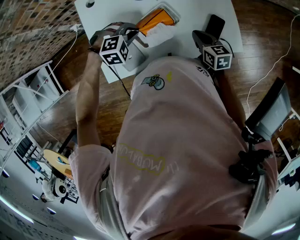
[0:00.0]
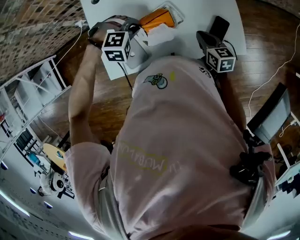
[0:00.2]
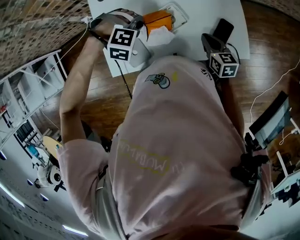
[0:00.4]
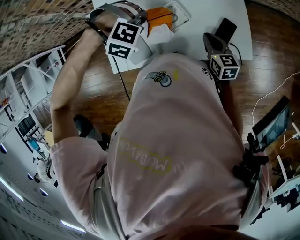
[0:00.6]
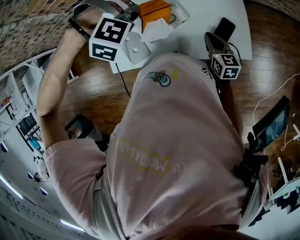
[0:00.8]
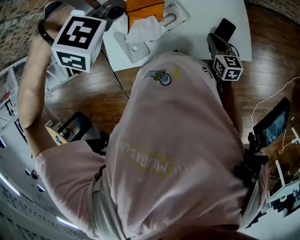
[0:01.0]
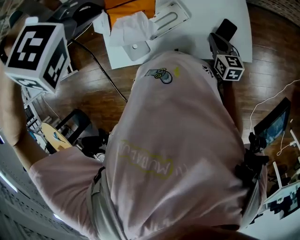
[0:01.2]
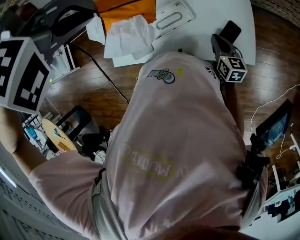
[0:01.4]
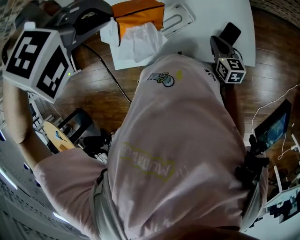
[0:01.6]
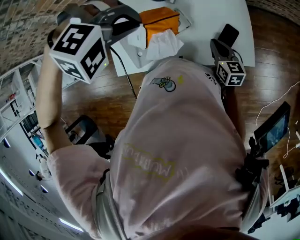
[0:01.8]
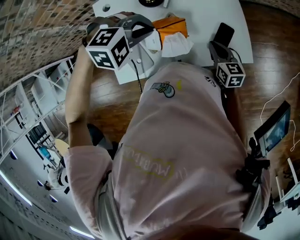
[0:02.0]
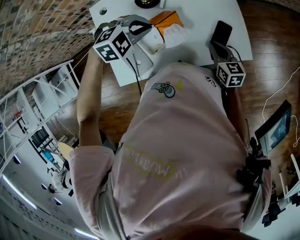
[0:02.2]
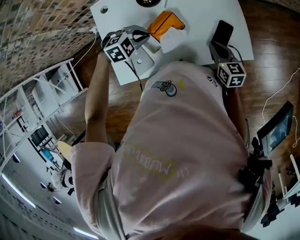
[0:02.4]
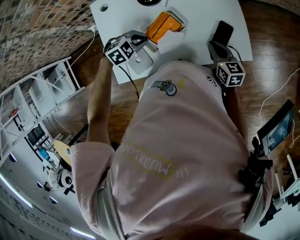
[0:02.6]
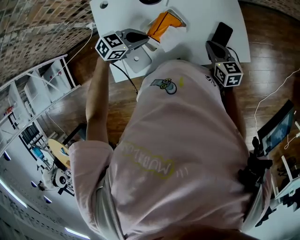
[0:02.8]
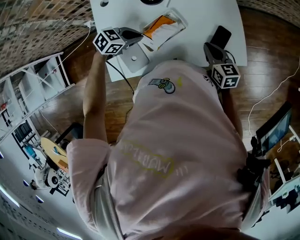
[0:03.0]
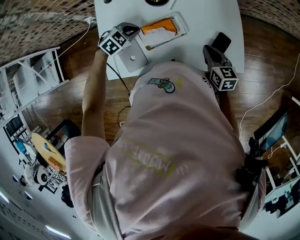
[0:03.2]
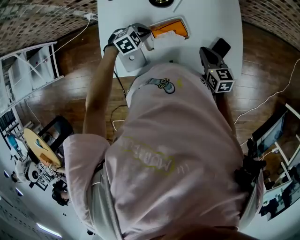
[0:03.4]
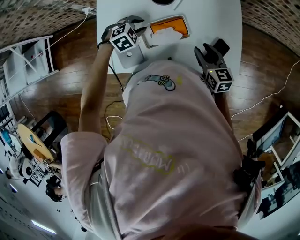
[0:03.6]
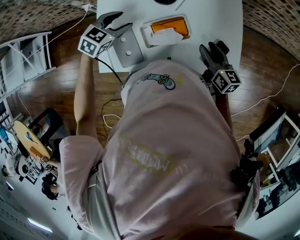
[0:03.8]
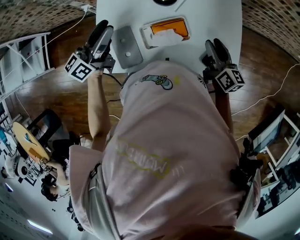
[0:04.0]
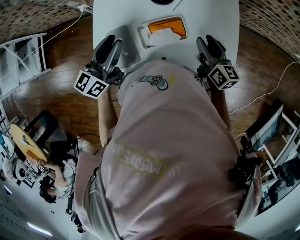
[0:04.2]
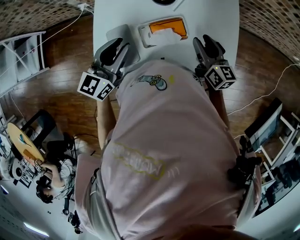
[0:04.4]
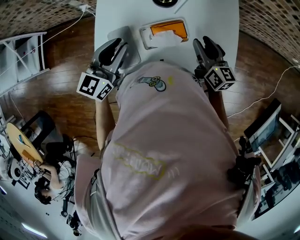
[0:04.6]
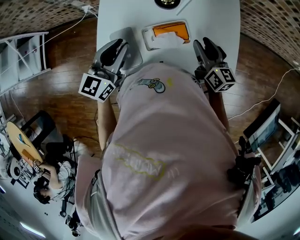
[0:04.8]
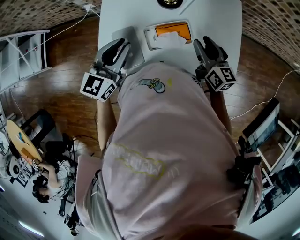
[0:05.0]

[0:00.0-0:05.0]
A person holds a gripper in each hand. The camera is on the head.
0:00.0 to 0:01.6: The left gripper moves upward, some 30 cm, and turns by some 30 degrees.
0:01.6 to 0:03.4: The left gripper moves up and down over roughly 35 cm, changing direction 2 times, and rotates around the line of its fingers by some 60 degrees, counterclockwise from behind.
0:03.4 to 0:05.0: The right gripper travels upward by approximately 10 cm, and opens up; the left gripper heads upward, covering some 25 cm, tips its fingers upward by roughly 50 degrees, and opens, then closes once more.

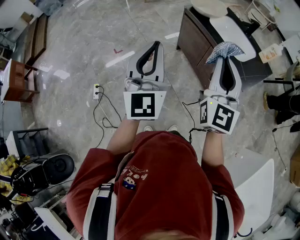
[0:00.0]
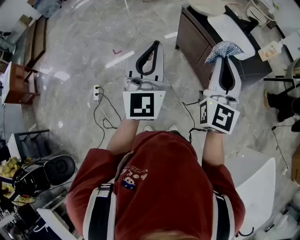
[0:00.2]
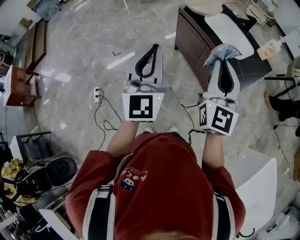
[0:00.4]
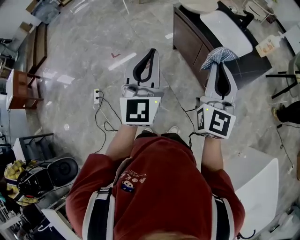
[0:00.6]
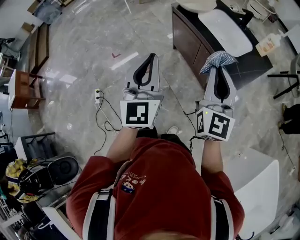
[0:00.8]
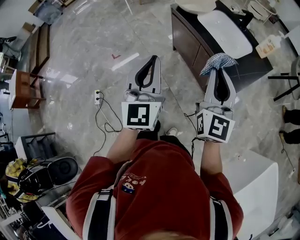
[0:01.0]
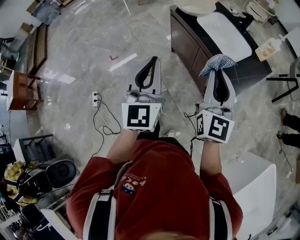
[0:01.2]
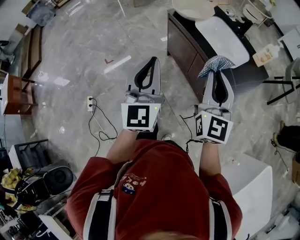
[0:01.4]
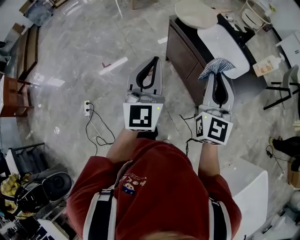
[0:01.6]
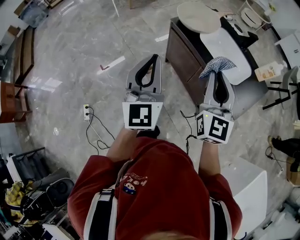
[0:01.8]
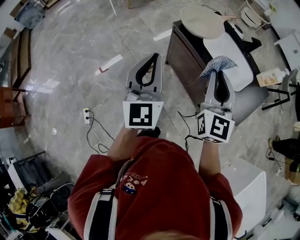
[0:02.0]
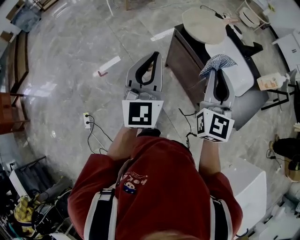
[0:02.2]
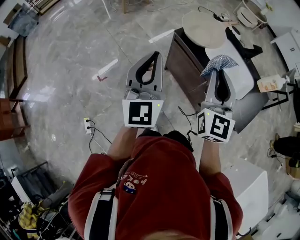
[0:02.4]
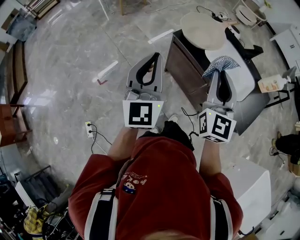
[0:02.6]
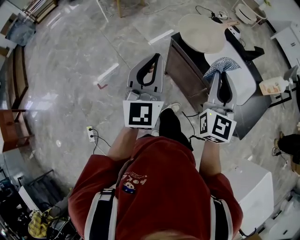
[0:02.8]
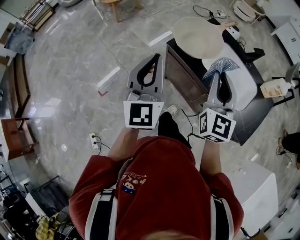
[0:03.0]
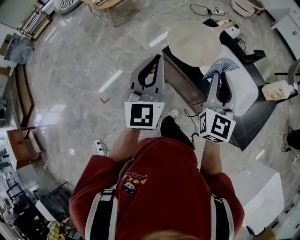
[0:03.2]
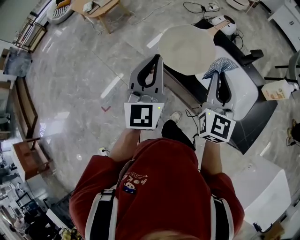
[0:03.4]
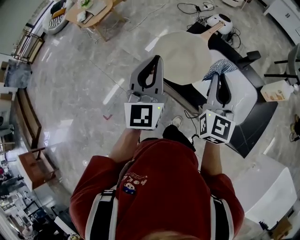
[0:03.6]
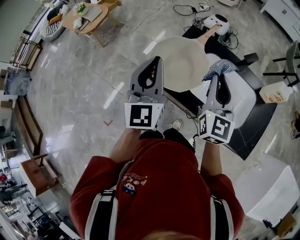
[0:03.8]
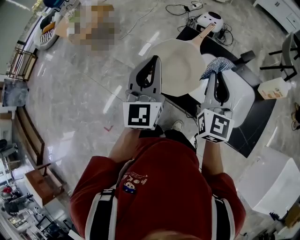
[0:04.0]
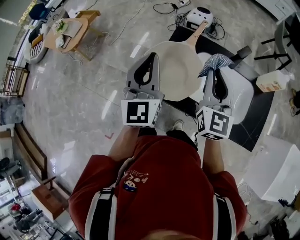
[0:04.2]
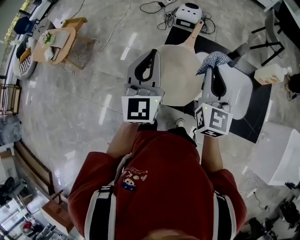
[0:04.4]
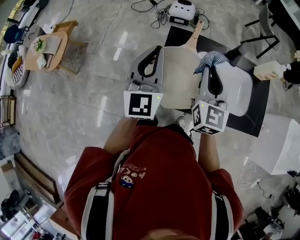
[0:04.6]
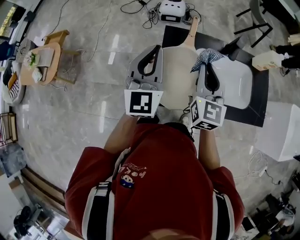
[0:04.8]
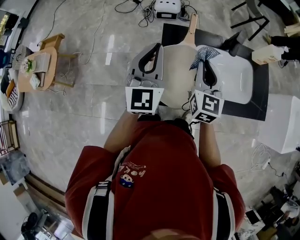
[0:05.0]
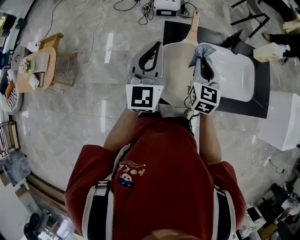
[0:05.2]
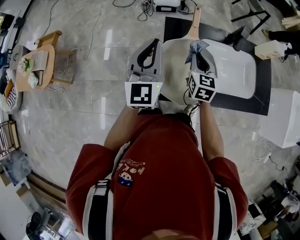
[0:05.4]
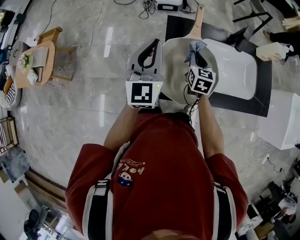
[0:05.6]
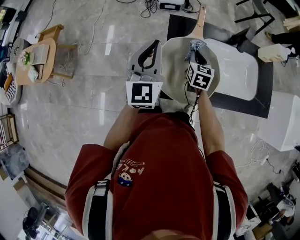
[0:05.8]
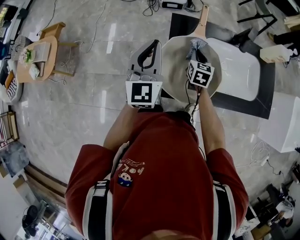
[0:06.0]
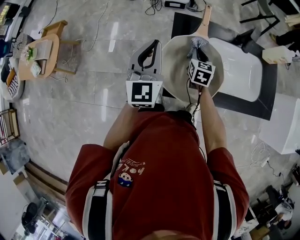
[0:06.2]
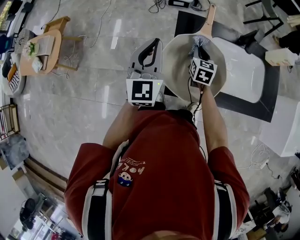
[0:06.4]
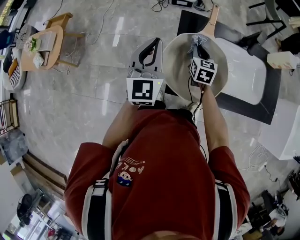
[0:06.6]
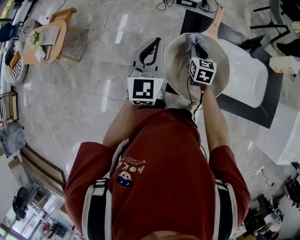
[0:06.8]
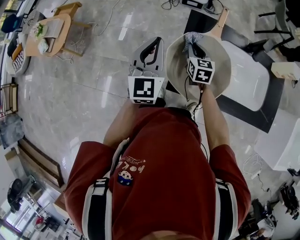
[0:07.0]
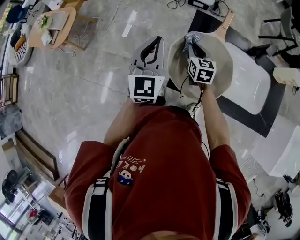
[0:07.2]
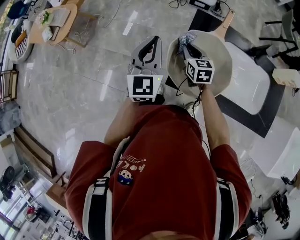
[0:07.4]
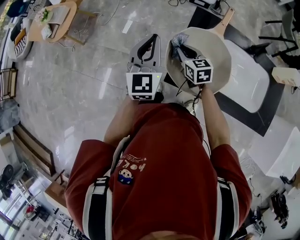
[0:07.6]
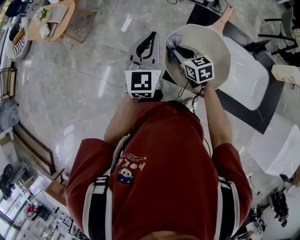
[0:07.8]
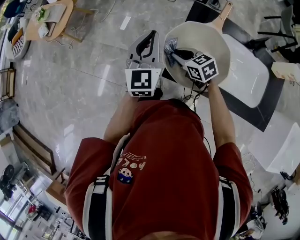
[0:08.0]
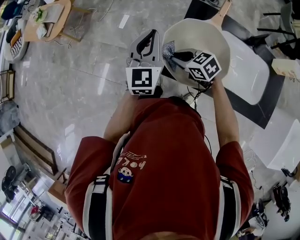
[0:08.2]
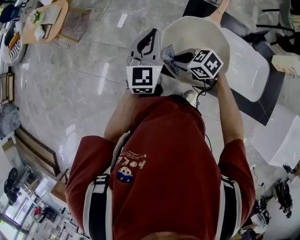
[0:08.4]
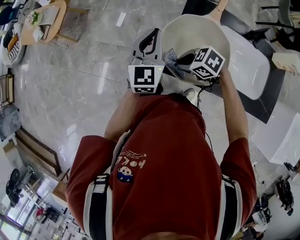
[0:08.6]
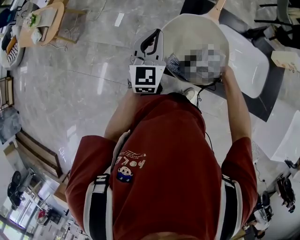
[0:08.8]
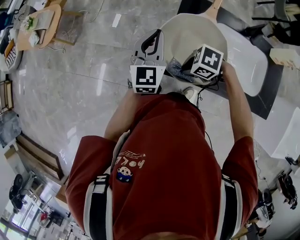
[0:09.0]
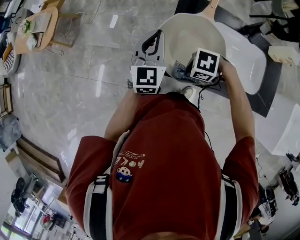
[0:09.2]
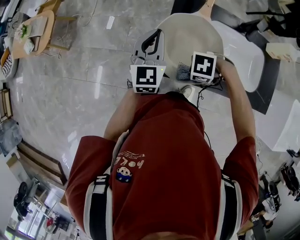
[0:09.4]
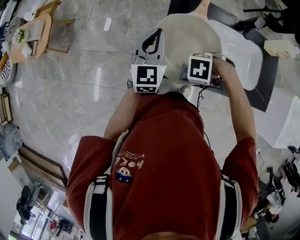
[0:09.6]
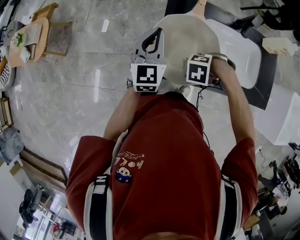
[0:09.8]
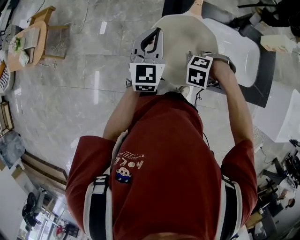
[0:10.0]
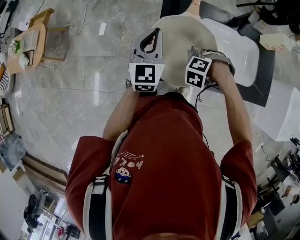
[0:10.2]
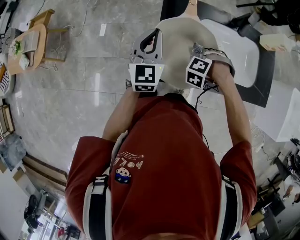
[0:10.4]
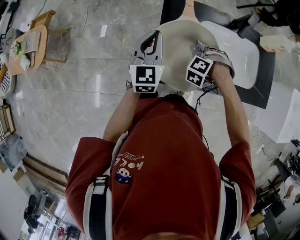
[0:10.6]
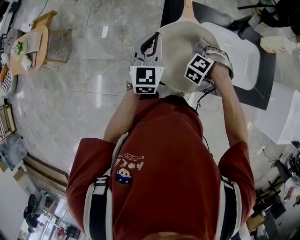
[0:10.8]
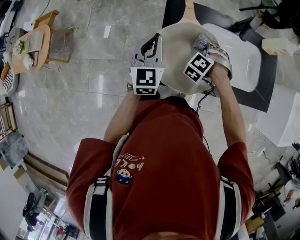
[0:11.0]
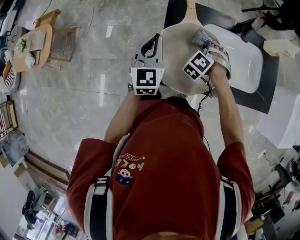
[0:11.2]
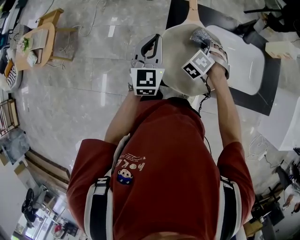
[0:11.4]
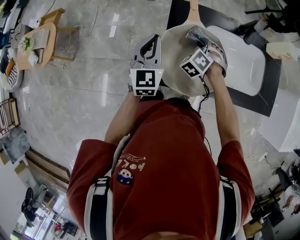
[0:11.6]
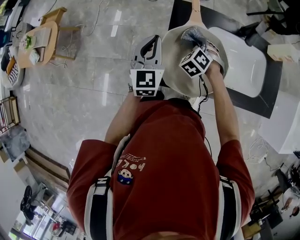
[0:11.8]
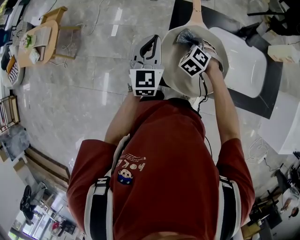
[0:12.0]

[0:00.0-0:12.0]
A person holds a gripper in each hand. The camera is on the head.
0:00.0 to 0:01.6: The right gripper goes approximately 15 cm forward, to the right and downward, while the left gripper heads forward and to the right, covering roughly 15 cm.
0:01.6 to 0:03.0: Both grippers travel together forward, roughly 25 cm.
0:03.0 to 0:04.4: The right gripper changes place by approximately 25 cm, and swivels about 30 degrees. The left gripper moves roughly 35 cm, and rotates roughly 30 degrees.
0:04.4 to 0:06.0: The left gripper goes approximately 15 cm downward, to the left and forward. Meanwhile the right gripper travels downward by approximately 25 cm, and tilts its fingers approximately 30 degrees downward.
0:06.0 to 0:07.6: The left gripper ends up about 5 cm from where it was. Meanwhile the right gripper moves about 15 cm, and rotates roughly 40 degrees.
0:07.6 to 0:09.0: The left gripper changes place by approximately 5 cm; the right gripper ends up approximately 15 cm from where it was, and rotates about 70 degrees.
0:09.0 to 0:10.4: The right gripper shifts by roughly 15 cm, and changes its angle by about 60 degrees; the left gripper changes place by about 5 cm.
0:10.4 to 0:12.0: The right gripper shifts by some 15 cm, and turns by approximately 40 degrees.

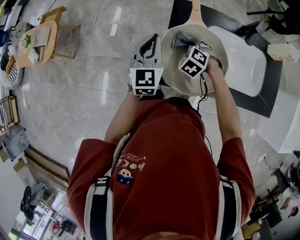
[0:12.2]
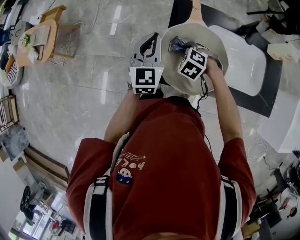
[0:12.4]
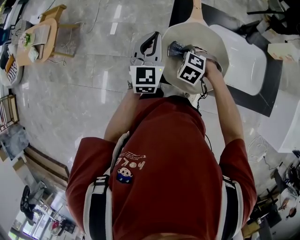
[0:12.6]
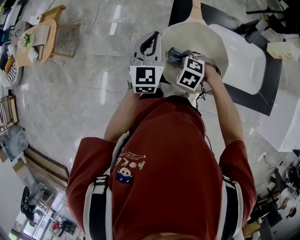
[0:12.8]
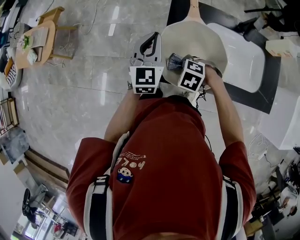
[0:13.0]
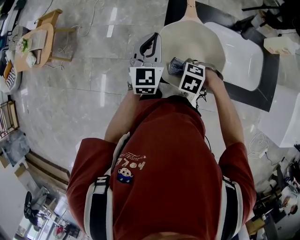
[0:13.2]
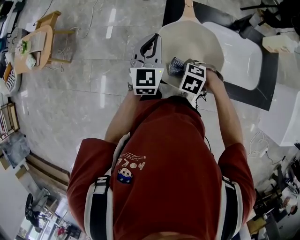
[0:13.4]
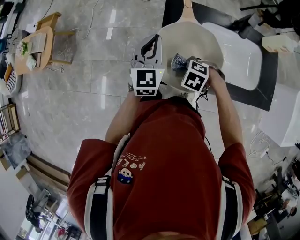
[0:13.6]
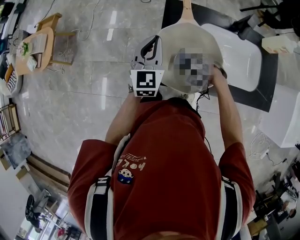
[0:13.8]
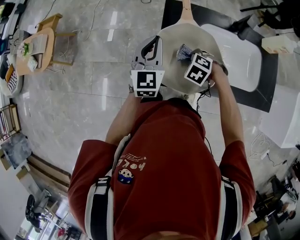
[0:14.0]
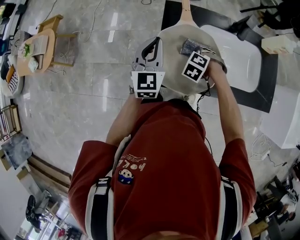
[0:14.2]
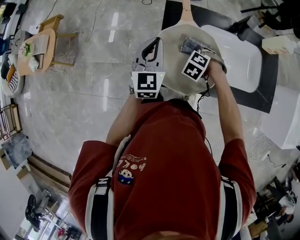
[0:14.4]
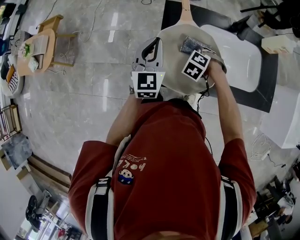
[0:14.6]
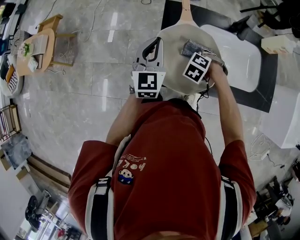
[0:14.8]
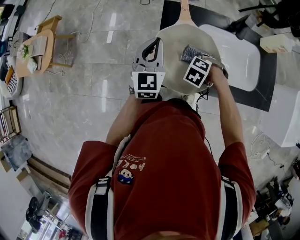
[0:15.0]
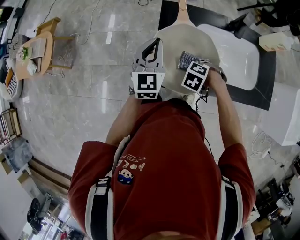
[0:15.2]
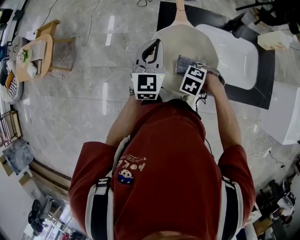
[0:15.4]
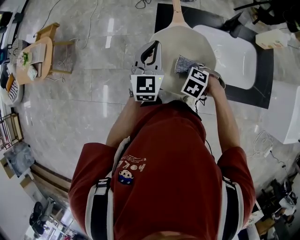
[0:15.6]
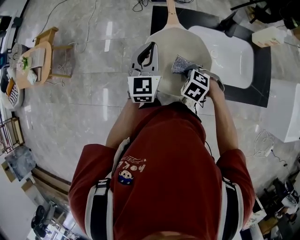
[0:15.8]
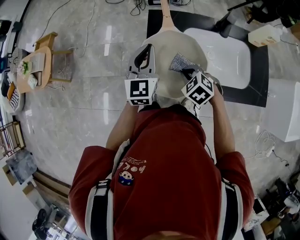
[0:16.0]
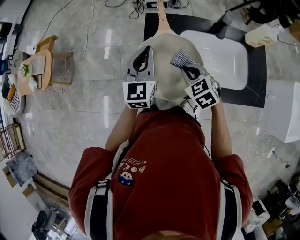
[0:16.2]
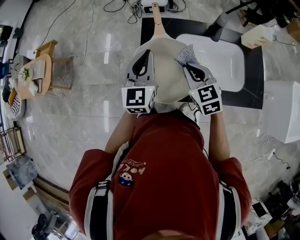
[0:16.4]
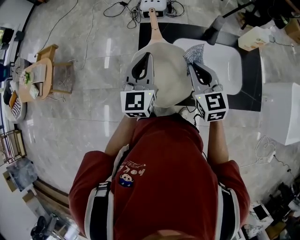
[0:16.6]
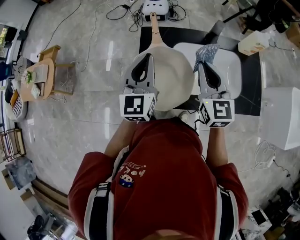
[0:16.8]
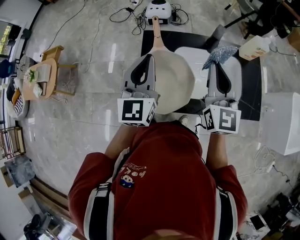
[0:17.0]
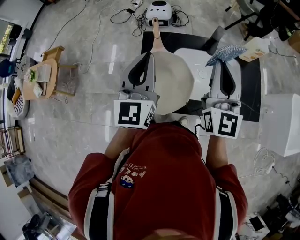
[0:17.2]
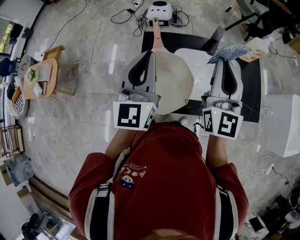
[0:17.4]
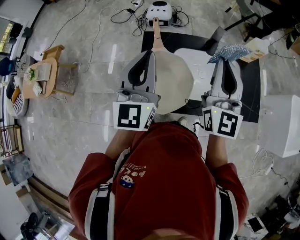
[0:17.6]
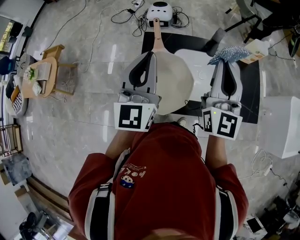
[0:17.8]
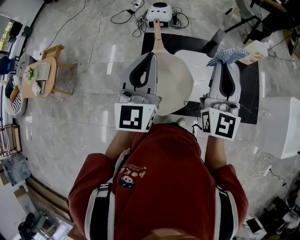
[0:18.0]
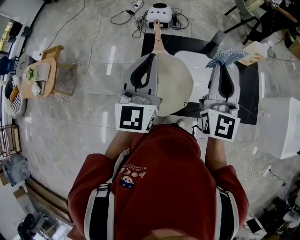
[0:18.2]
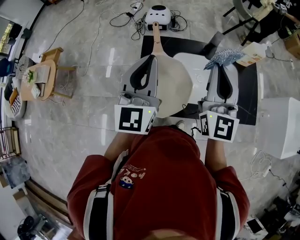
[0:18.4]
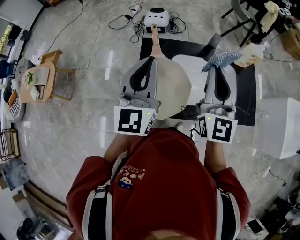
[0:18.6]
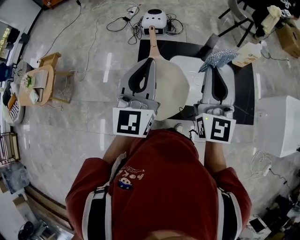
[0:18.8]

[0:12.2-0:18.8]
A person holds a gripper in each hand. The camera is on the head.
0:12.2 to 0:13.8: The right gripper shifts by about 10 cm.
0:15.4 to 0:17.2: The right gripper heads upward, covering about 35 cm, and tilts its fingers about 90 degrees upward. Meanwhile the left gripper goes some 15 cm upward.
0:17.2 to 0:18.8: The grippers stay close to where they were, moving slightly.
